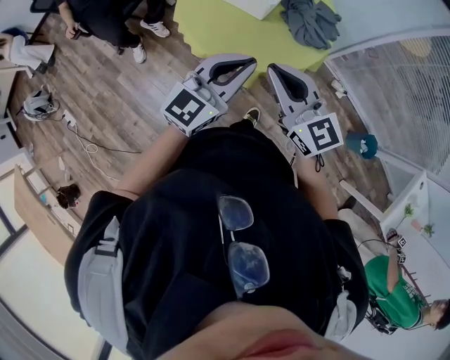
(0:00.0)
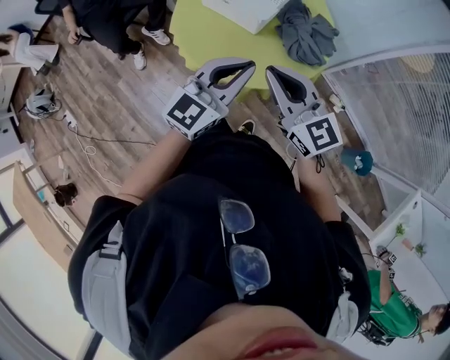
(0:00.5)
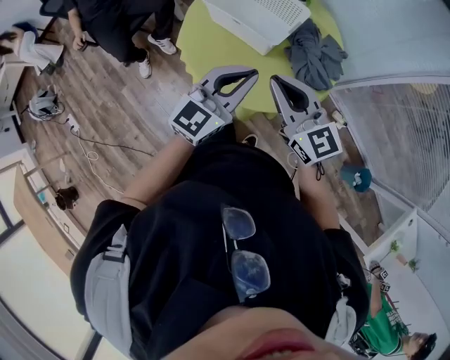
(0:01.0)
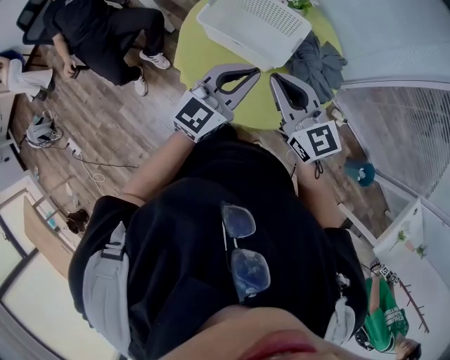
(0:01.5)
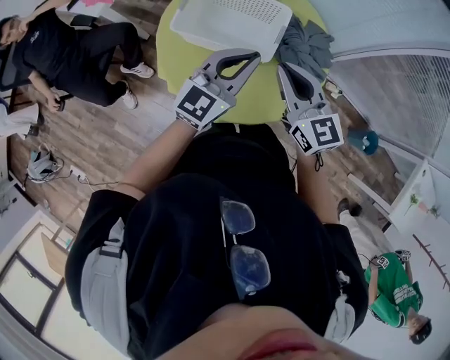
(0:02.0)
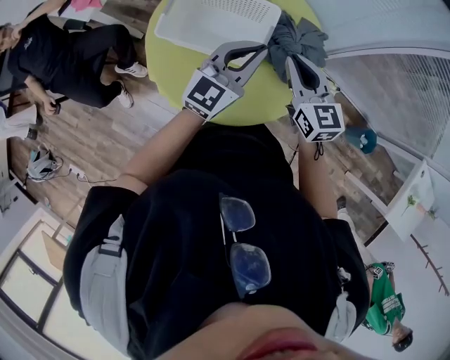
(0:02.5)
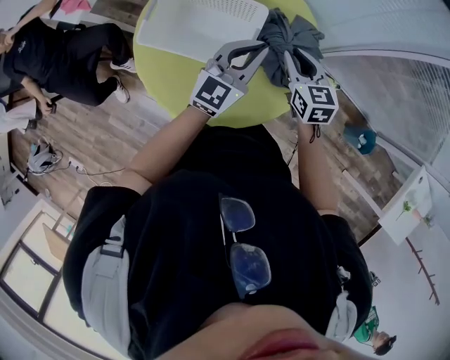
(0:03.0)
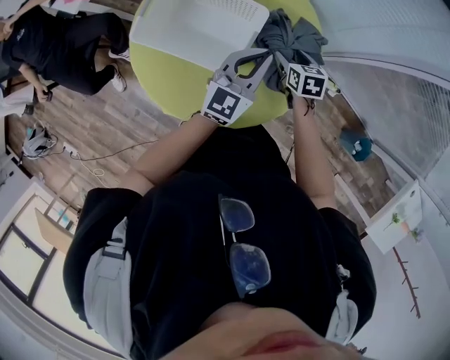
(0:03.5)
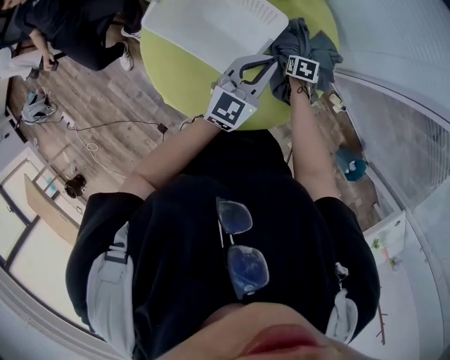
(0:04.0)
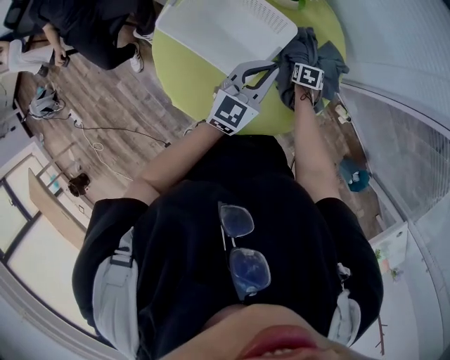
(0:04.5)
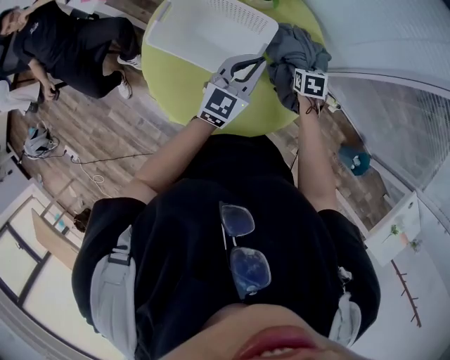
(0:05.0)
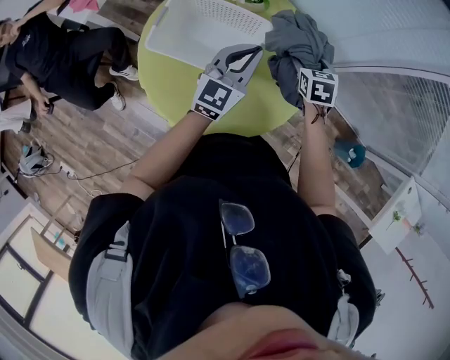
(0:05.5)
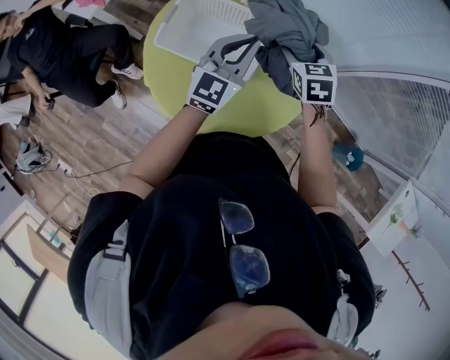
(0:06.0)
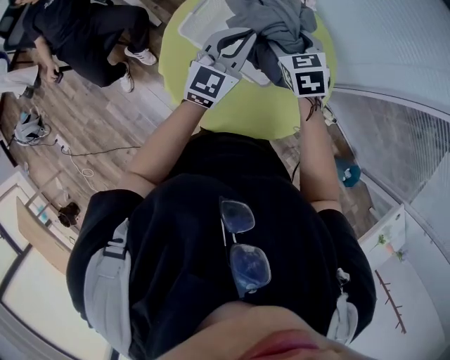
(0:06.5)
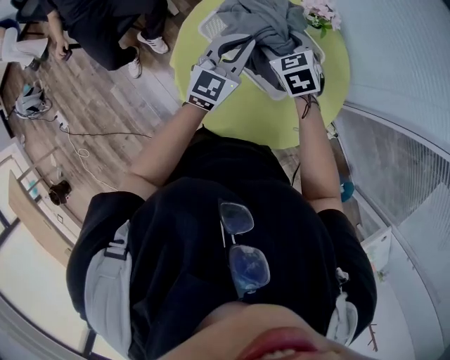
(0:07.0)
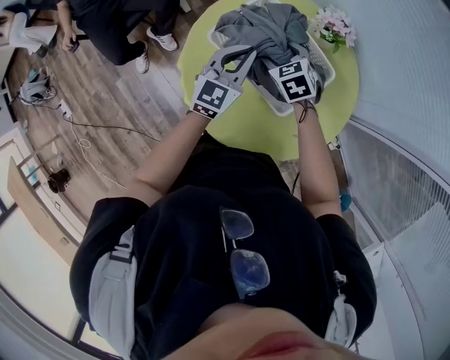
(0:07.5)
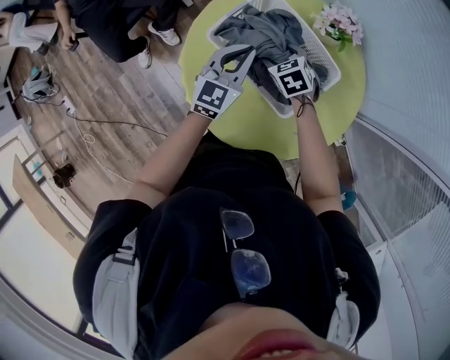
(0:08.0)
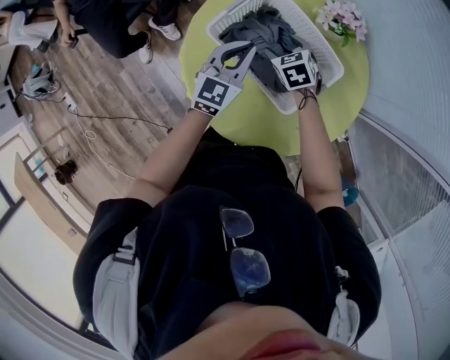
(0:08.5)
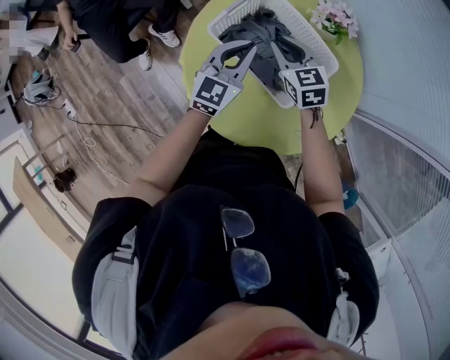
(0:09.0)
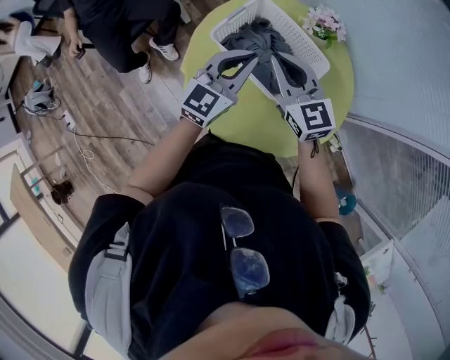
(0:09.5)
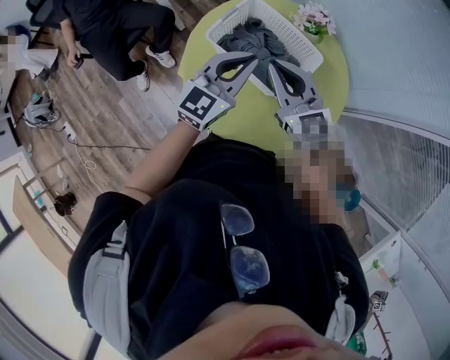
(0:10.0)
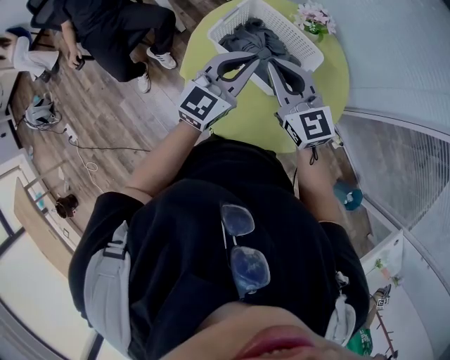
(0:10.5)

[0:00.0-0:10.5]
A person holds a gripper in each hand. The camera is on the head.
0:00.0 to 0:02.0: The two grippers go roughly 30 cm forward. The right gripper changes its angle by roughly 20 degrees.
0:02.0 to 0:04.0: The right gripper moves downward and forward, some 50 cm, tilts its fingers approximately 60 degrees downward, and opens its fingers, while the left gripper goes roughly 20 cm forward, downward and to the right, and rotates roughly 20 degrees.
0:04.0 to 0:06.5: The left gripper heads to the left and upward, covering some 20 cm, while the right gripper moves upward and to the left, roughly 40 cm, and rotates roughly 40 degrees.
0:06.5 to 0:08.5: Both grippers move downward and to the left, some 15 cm. The right gripper swivels roughly 20 degrees.
0:08.5 to 0:10.5: The right gripper is displaced upward and backward by about 30 cm, angles its fingers upward, by roughly 50 degrees, and closes up, while the left gripper travels upward and backward by roughly 20 cm.

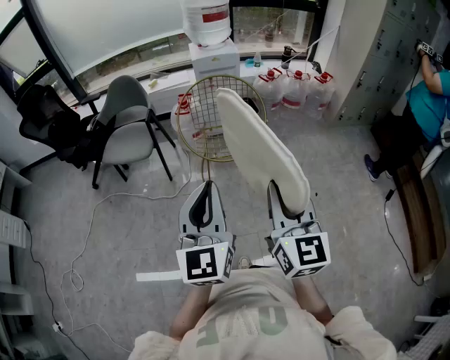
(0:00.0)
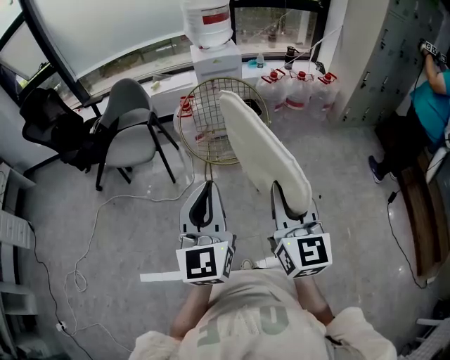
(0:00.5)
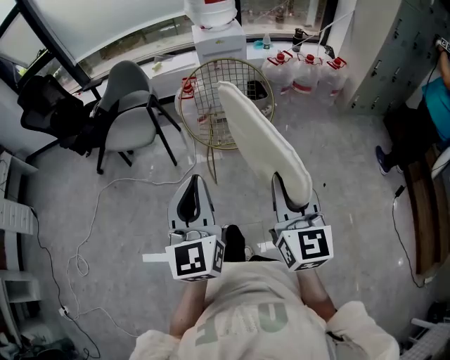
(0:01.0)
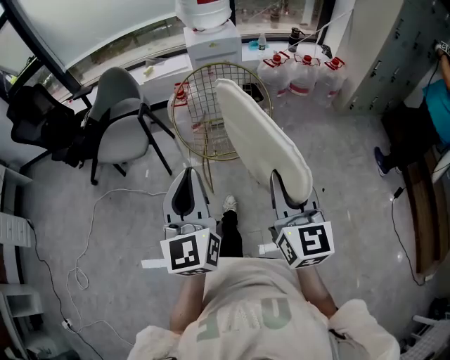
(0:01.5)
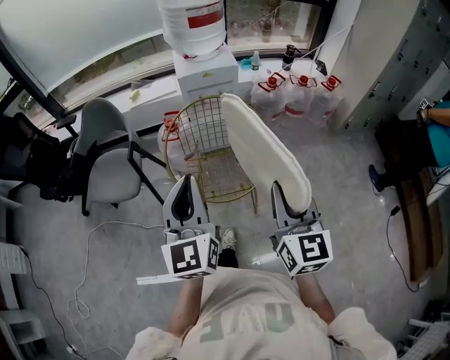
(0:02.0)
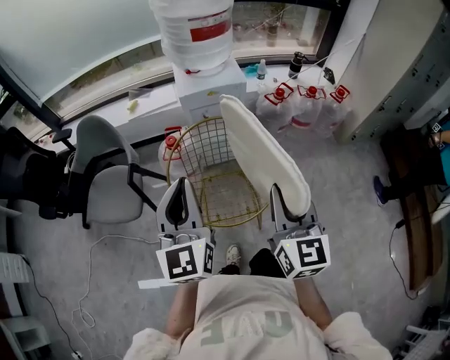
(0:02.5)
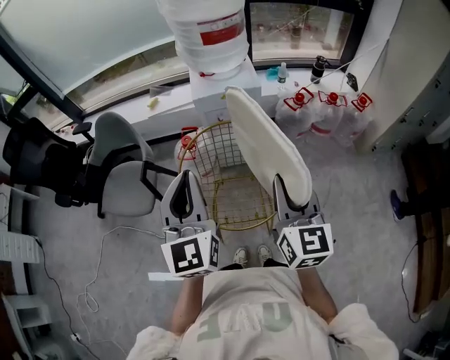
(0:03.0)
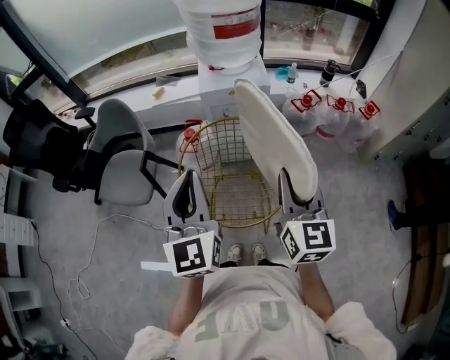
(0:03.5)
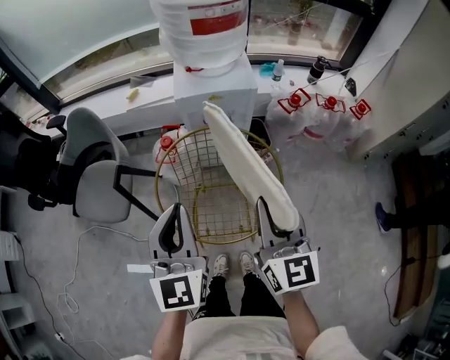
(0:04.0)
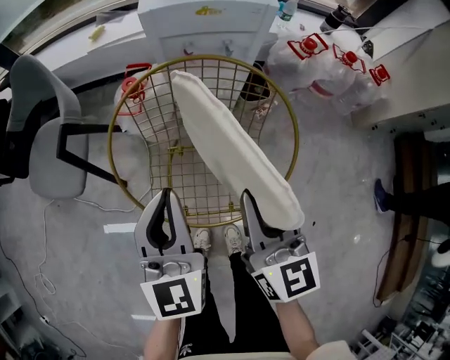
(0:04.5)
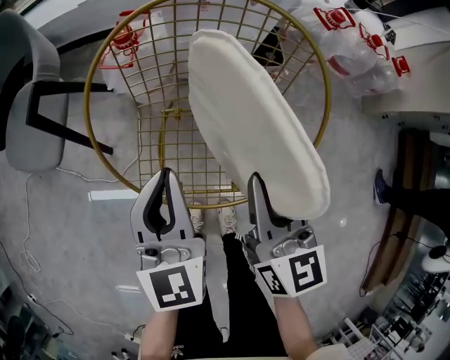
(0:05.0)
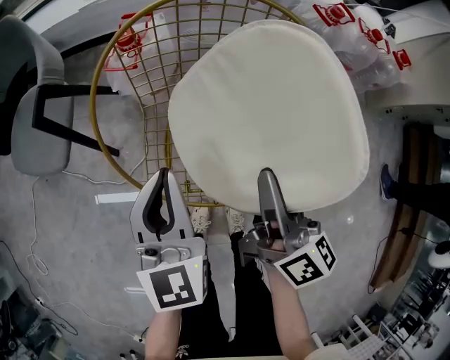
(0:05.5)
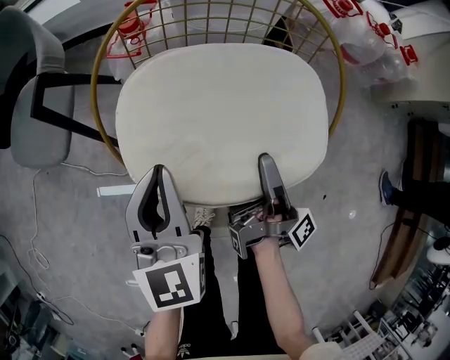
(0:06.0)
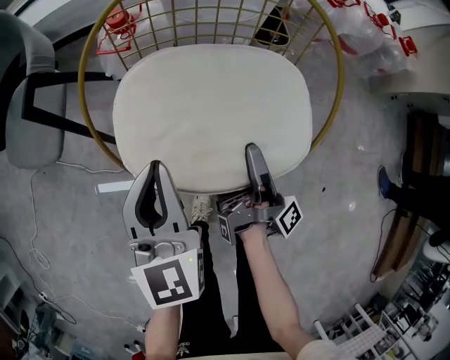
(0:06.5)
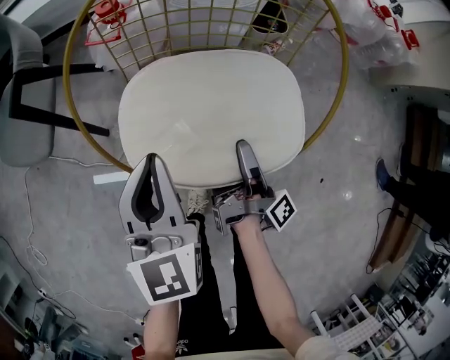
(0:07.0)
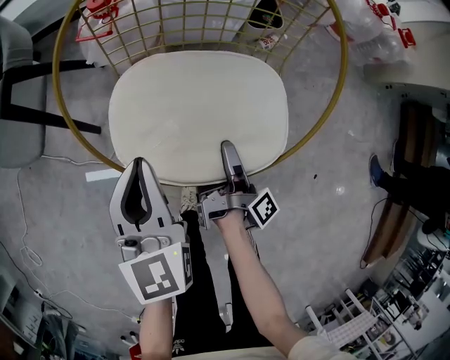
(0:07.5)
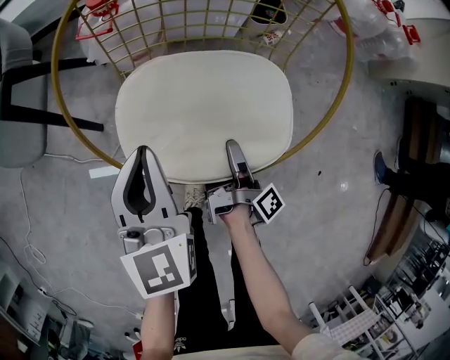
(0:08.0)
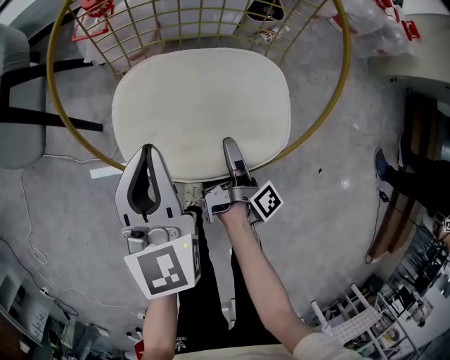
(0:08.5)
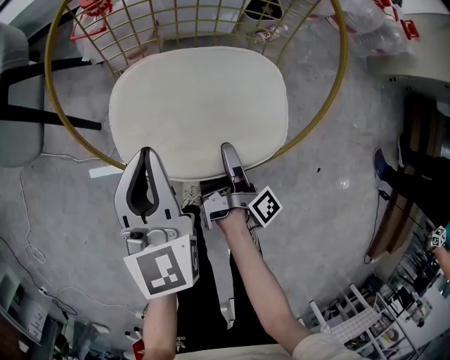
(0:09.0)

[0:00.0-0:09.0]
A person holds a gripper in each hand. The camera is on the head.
0:00.0 to 0:02.0: Both grippers travel together forward, some 30 cm.
0:02.0 to 0:04.5: The left gripper heads downward and forward, covering approximately 35 cm, while the right gripper is displaced forward and downward by about 35 cm.
0:04.5 to 0:07.0: The right gripper shifts roughly 25 cm downward, and rolls clockwise, seen from behind, by approximately 100 degrees; the left gripper goes about 15 cm downward.
0:07.0 to 0:09.0: The right gripper travels downward by some 5 cm.

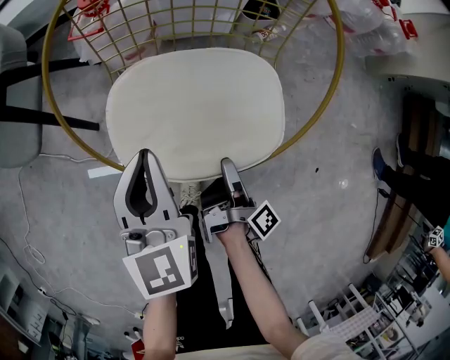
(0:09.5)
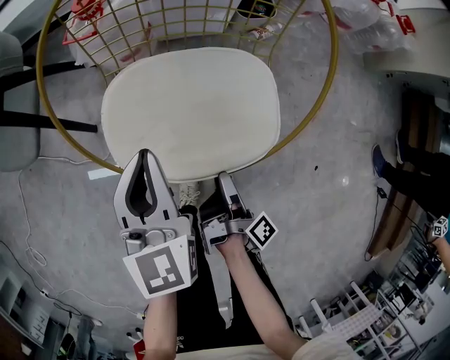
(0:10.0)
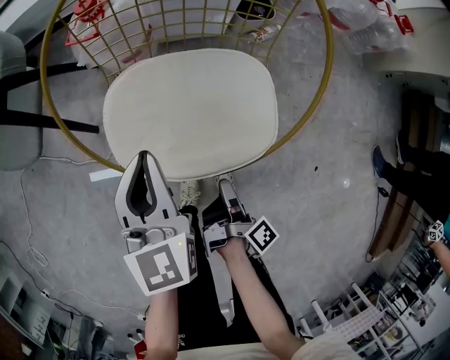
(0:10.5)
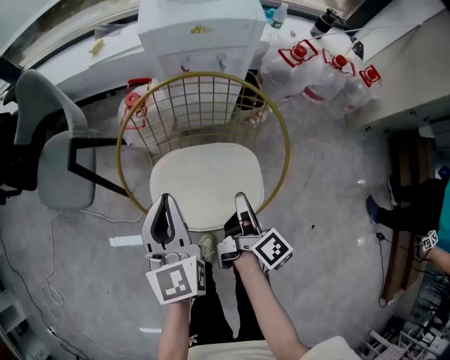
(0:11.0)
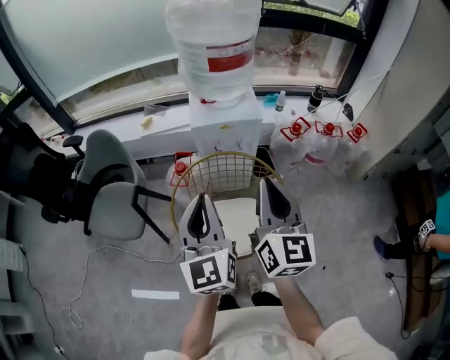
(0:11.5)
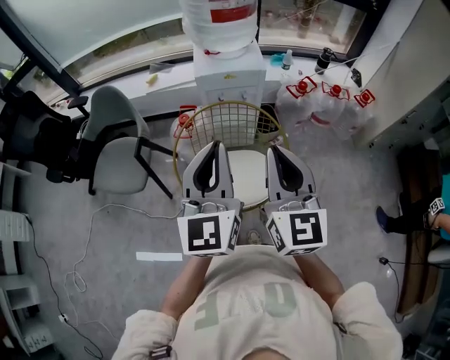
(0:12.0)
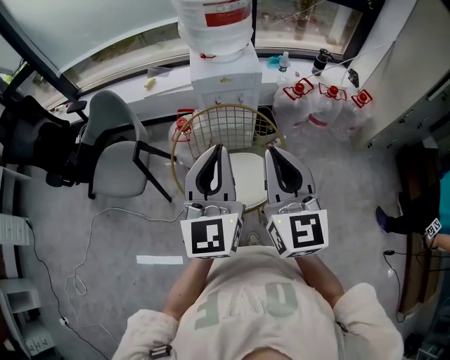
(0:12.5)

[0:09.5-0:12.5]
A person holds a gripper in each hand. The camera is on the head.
0:09.5 to 0:11.0: The right gripper is displaced upward and forward by some 20 cm, changes its angle by some 30 degrees, and closes. The left gripper travels upward by approximately 15 cm.
0:11.0 to 0:12.5: The two grippers go about 35 cm upward. The left gripper changes its angle by approximately 20 degrees, while the right gripper twists some 80 degrees counterclockwise, seen from behind.

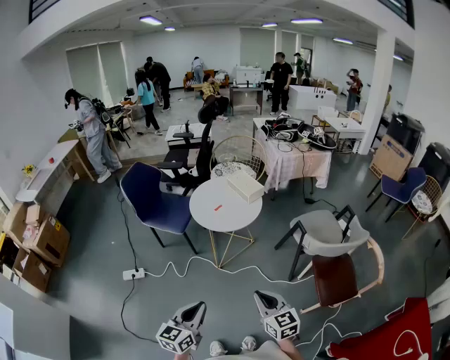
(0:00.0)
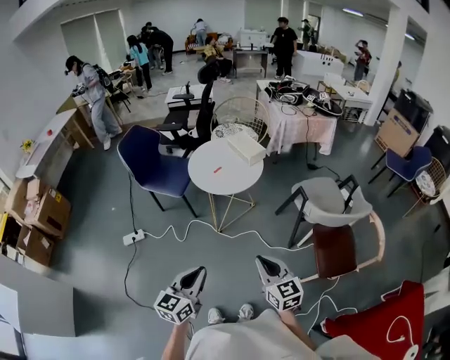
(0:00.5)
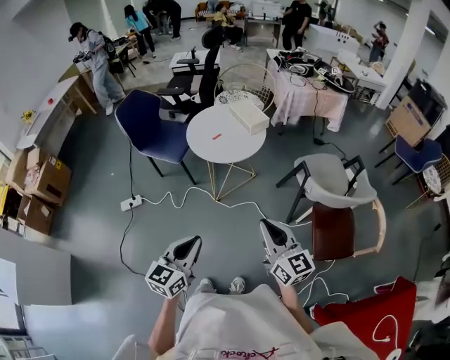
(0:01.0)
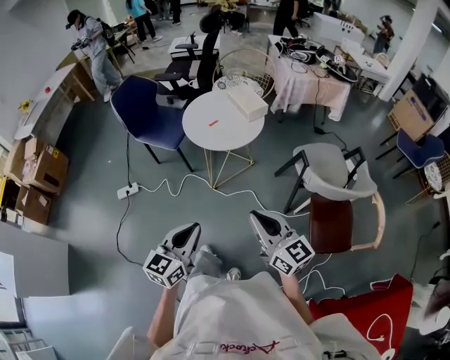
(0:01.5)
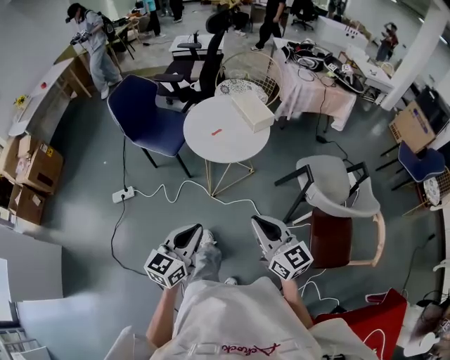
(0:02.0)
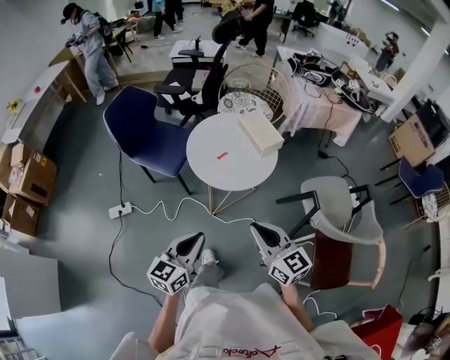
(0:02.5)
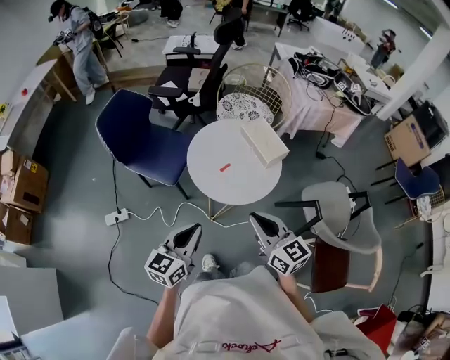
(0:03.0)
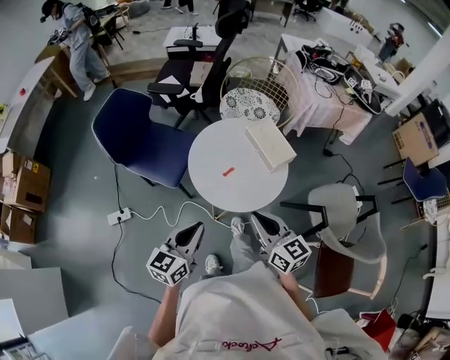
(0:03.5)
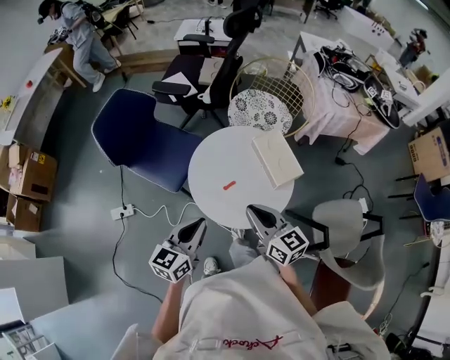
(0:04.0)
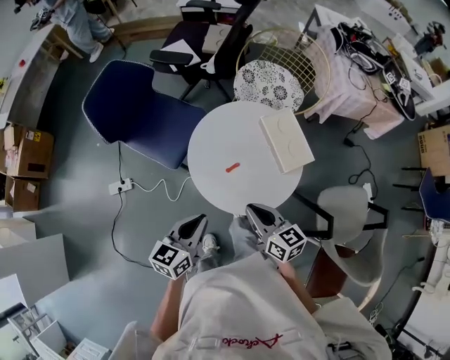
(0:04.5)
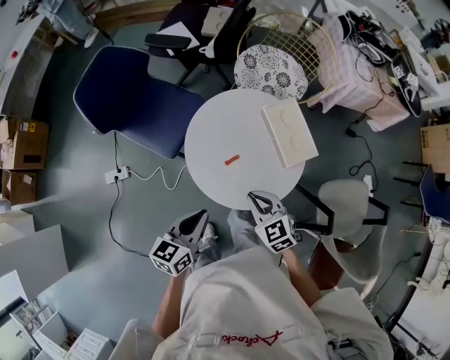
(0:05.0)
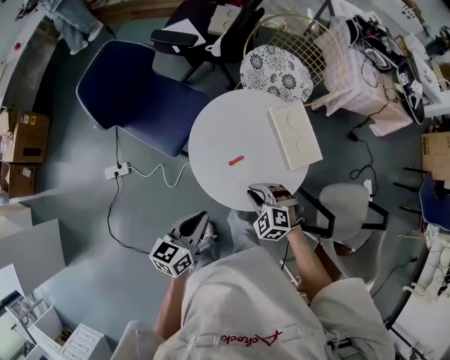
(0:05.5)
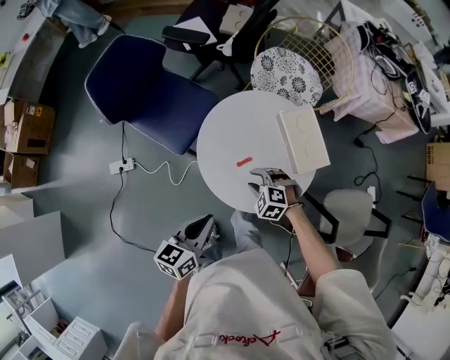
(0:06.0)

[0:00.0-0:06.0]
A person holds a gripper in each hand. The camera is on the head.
0:00.0 to 0:02.0: The left gripper is displaced forward and to the right by approximately 15 cm. Meanwhile the right gripper travels forward by some 15 cm.
0:02.0 to 0:04.0: The two grippers go about 40 cm forward.
0:04.0 to 0:06.0: The left gripper goes some 10 cm downward; the right gripper is displaced downward by roughly 25 cm, points its fingers approximately 50 degrees further downward, and opens.
